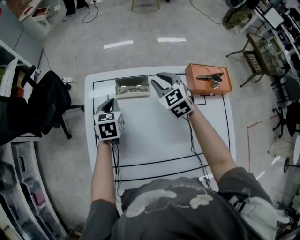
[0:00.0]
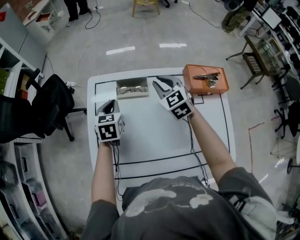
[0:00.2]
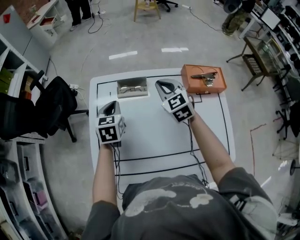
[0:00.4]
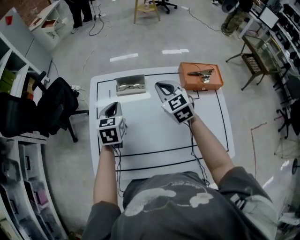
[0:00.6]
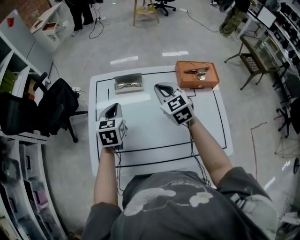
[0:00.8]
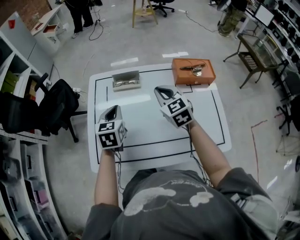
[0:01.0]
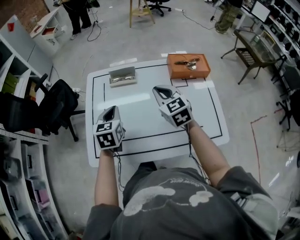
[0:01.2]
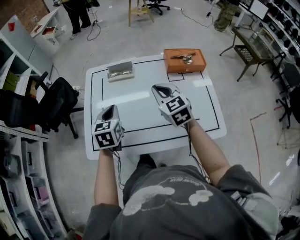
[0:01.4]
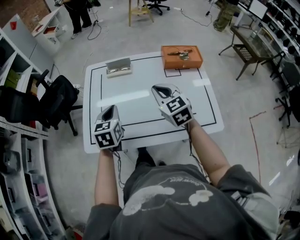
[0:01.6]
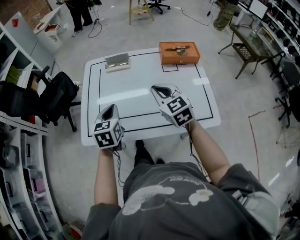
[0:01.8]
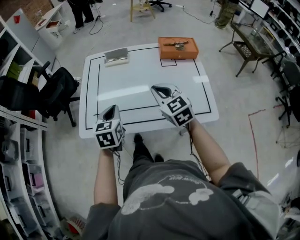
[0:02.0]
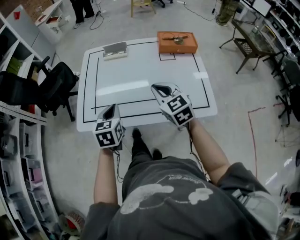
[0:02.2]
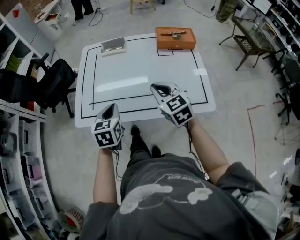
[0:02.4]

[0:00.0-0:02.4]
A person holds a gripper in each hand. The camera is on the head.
0.0 to 1.2 s: The right gripper heads backward, covering about 20 cm, and closes up. The left gripper heads backward and upward, covering approximately 20 cm.
1.2 to 2.4 s: The grippers both shift backward by about 20 cm.

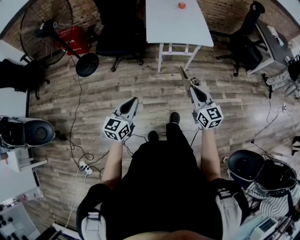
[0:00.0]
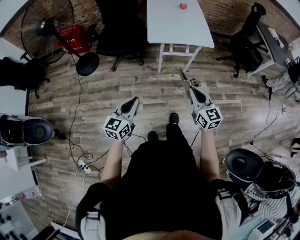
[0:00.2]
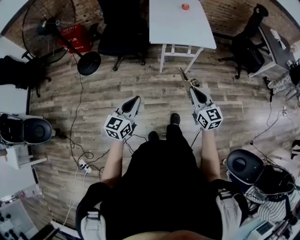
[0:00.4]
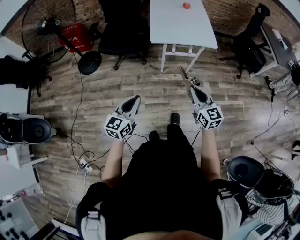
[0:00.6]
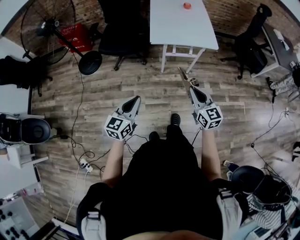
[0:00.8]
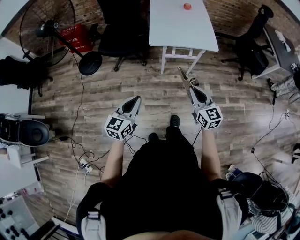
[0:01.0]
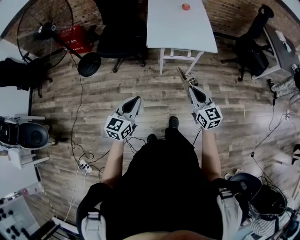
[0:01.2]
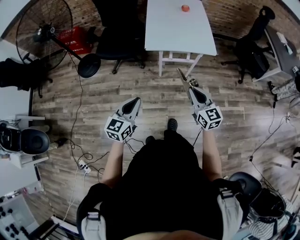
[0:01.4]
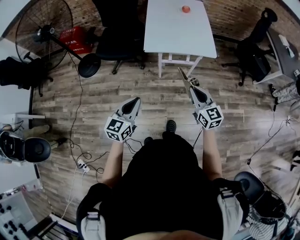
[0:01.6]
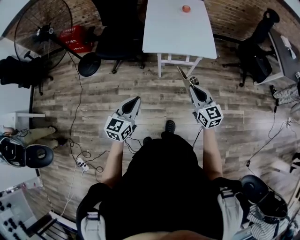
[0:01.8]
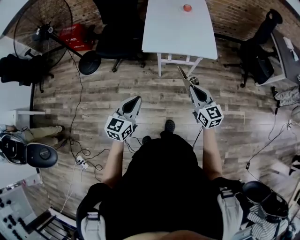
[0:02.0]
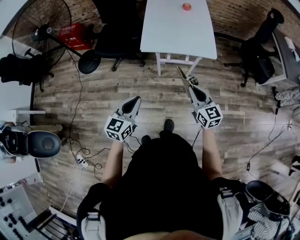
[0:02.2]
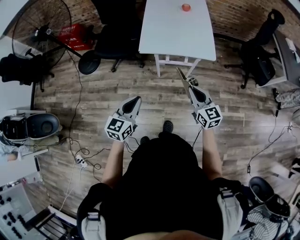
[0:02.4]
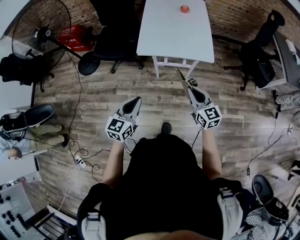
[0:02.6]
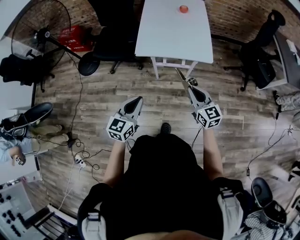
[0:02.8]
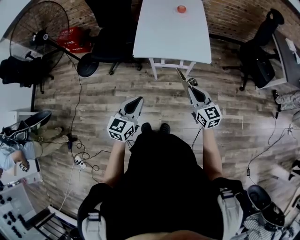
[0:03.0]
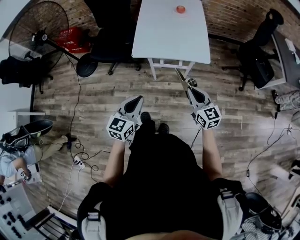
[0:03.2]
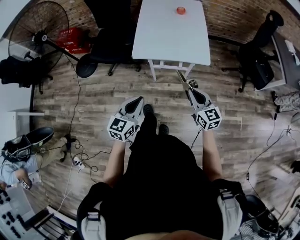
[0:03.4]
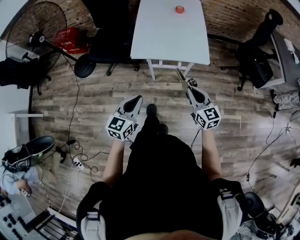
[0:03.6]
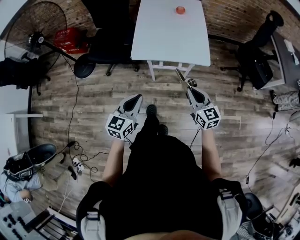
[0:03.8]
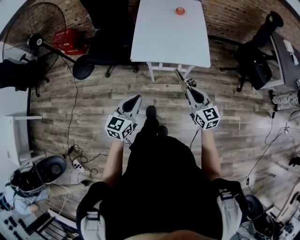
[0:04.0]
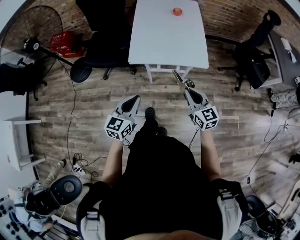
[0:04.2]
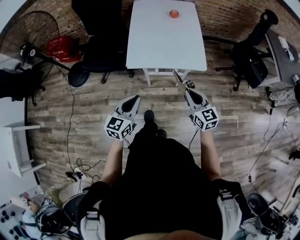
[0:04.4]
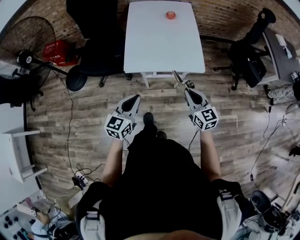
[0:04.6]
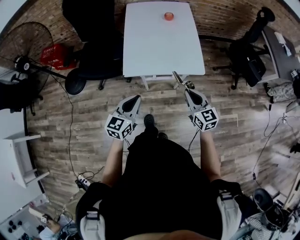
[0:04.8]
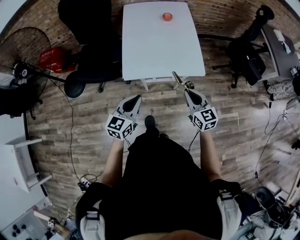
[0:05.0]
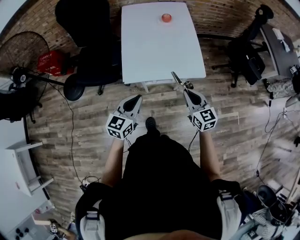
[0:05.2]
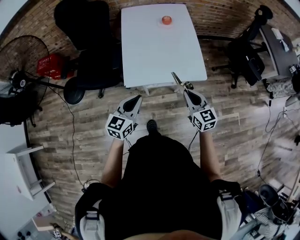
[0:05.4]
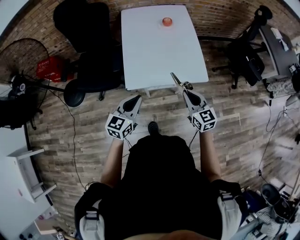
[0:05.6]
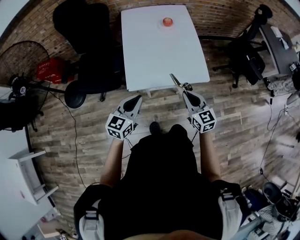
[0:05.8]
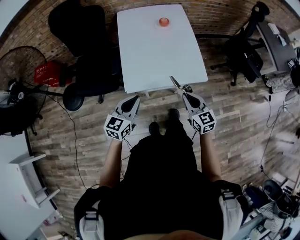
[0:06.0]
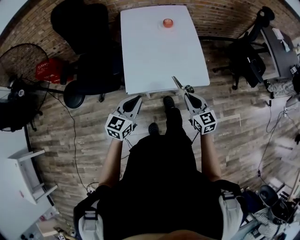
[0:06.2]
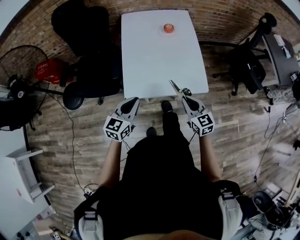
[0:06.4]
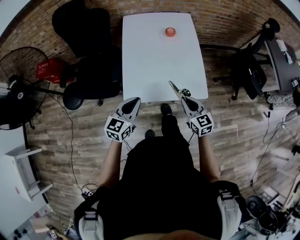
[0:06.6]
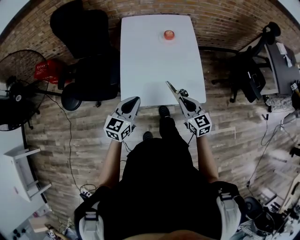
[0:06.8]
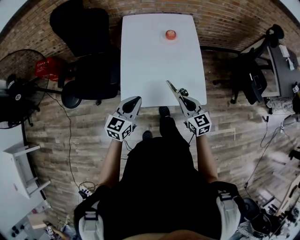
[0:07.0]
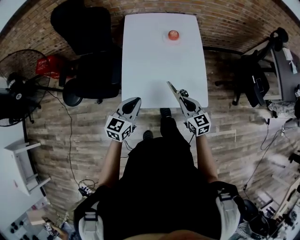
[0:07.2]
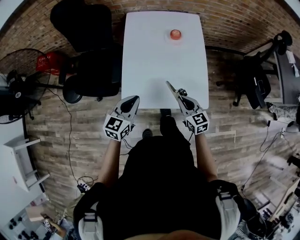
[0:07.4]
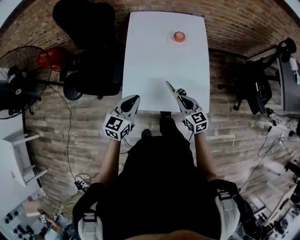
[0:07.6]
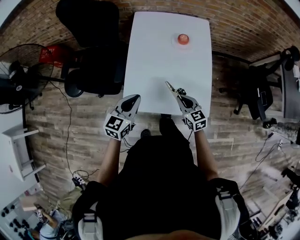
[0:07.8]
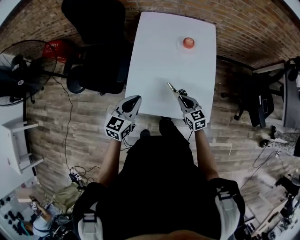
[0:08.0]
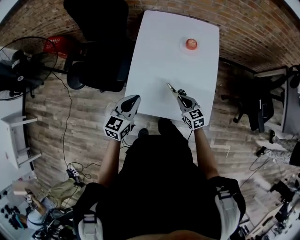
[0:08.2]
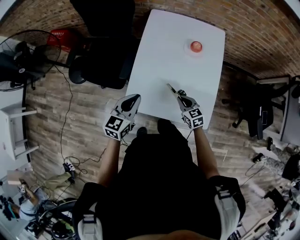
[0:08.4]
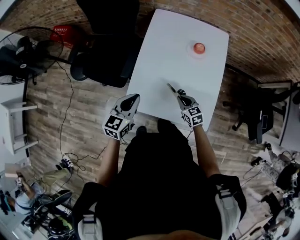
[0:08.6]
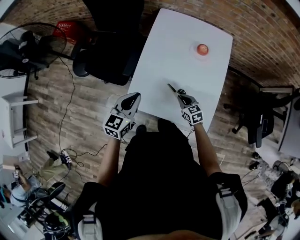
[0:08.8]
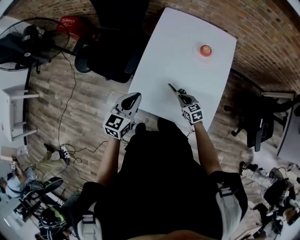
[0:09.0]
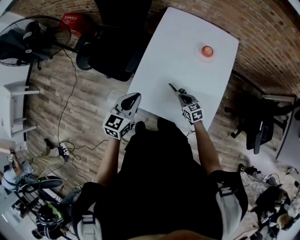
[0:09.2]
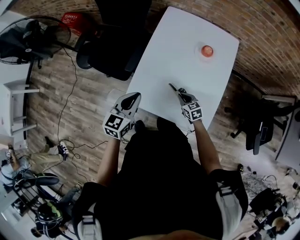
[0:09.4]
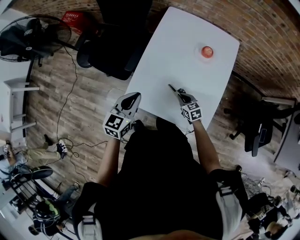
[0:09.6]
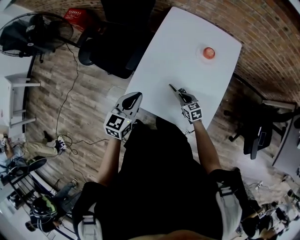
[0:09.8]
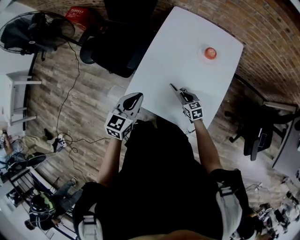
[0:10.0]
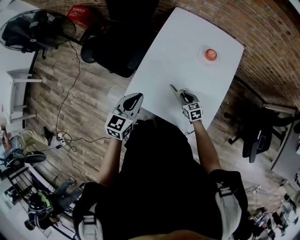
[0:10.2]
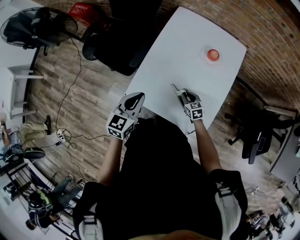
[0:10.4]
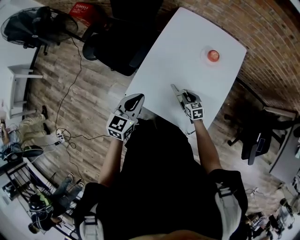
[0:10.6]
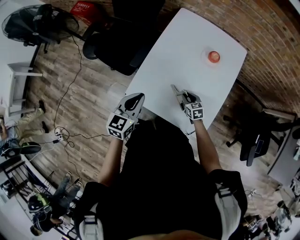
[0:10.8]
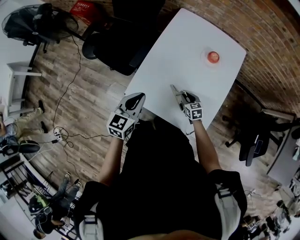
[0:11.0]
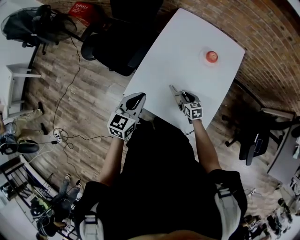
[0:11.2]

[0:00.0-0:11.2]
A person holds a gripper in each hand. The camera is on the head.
0.0 to 1.6 s: The two grippers go some 15 cm forward and to the right.
1.6 to 3.2 s: Both grippers travel together to the right and forward, some 15 cm.
3.2 to 4.8 s: Both grippers move forward, some 15 cm.
4.8 to 6.4 s: The left gripper goes approximately 15 cm forward. Meanwhile the right gripper moves forward and to the left, about 15 cm.
6.4 to 8.0 s: The right gripper goes some 20 cm forward and downward, while the left gripper travels forward by some 15 cm.
8.0 to 9.6 s: The right gripper travels downward and forward by some 10 cm, and swivels some 20 degrees.
9.6 to 11.2 s: The right gripper opens.

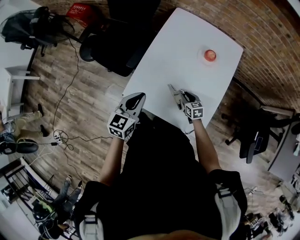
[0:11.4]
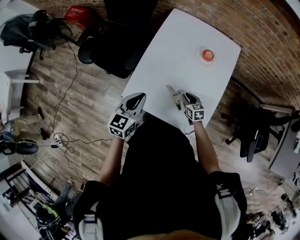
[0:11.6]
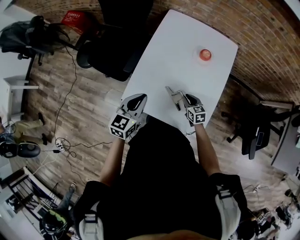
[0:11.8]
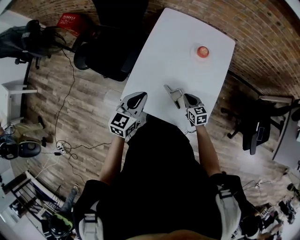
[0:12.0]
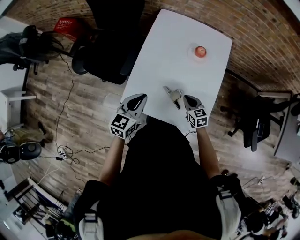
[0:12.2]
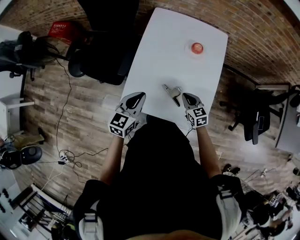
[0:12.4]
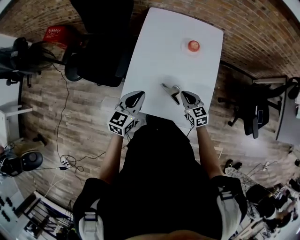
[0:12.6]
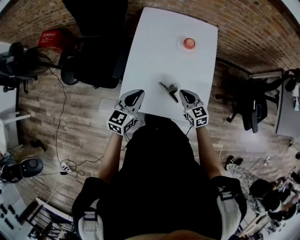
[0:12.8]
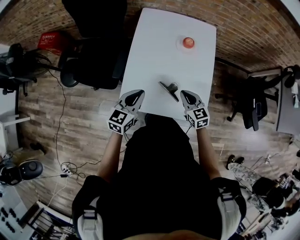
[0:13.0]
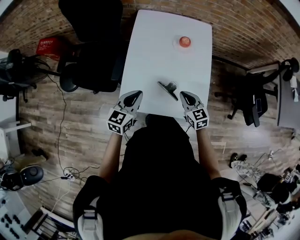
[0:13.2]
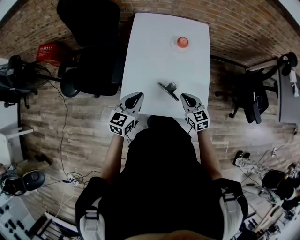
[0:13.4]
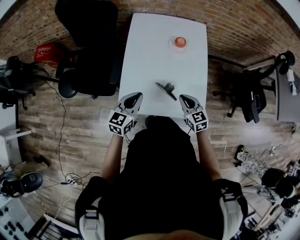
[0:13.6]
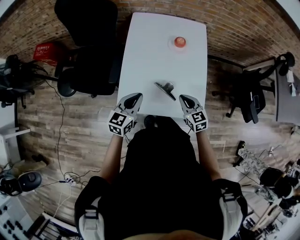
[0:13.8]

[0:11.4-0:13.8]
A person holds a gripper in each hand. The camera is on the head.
11.4 to 12.6 s: The right gripper heads upward, covering roughly 15 cm, and closes up.
12.6 to 13.8 s: The right gripper is displaced backward by approximately 5 cm.

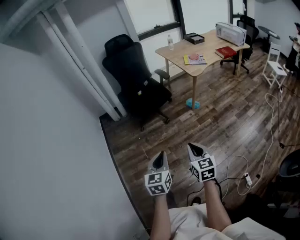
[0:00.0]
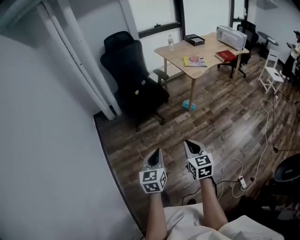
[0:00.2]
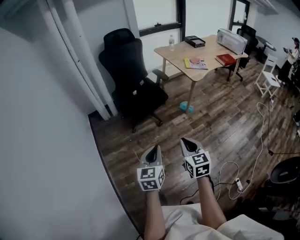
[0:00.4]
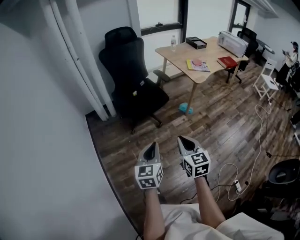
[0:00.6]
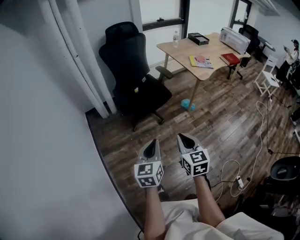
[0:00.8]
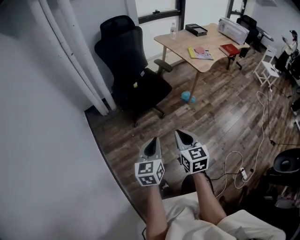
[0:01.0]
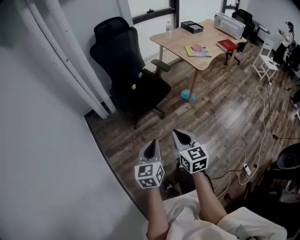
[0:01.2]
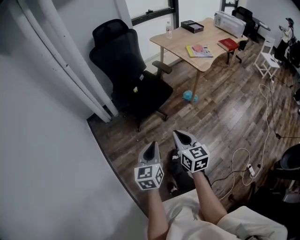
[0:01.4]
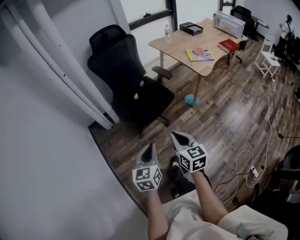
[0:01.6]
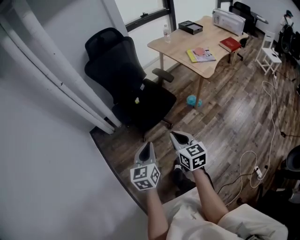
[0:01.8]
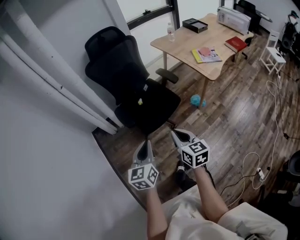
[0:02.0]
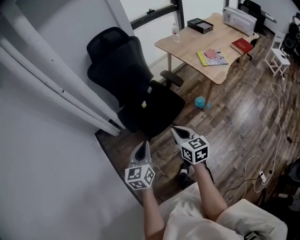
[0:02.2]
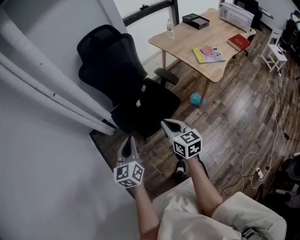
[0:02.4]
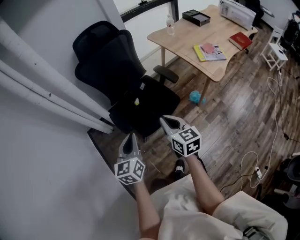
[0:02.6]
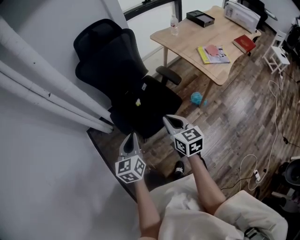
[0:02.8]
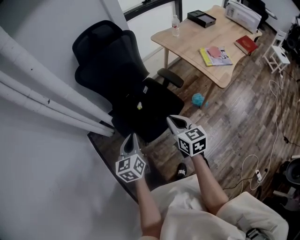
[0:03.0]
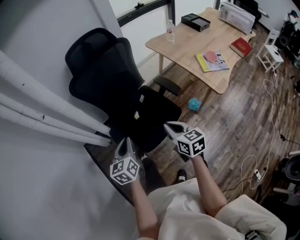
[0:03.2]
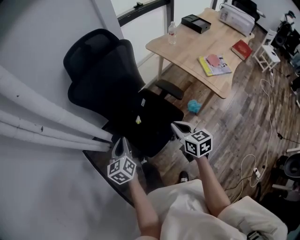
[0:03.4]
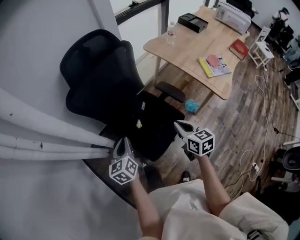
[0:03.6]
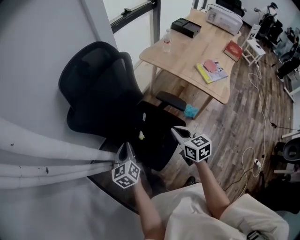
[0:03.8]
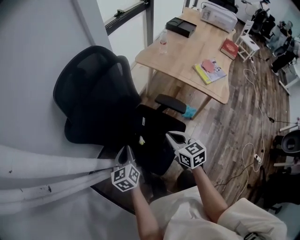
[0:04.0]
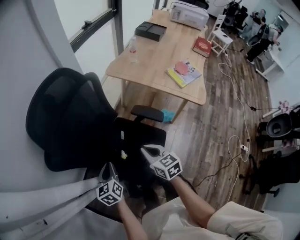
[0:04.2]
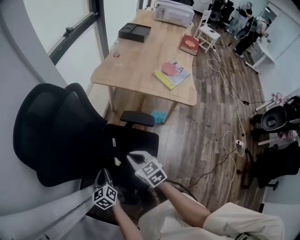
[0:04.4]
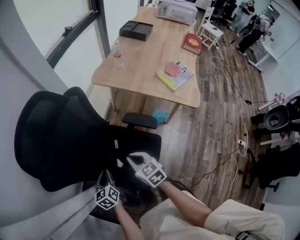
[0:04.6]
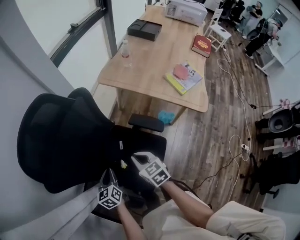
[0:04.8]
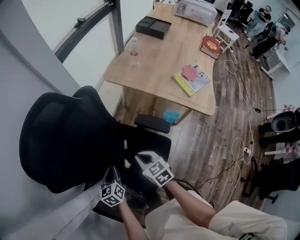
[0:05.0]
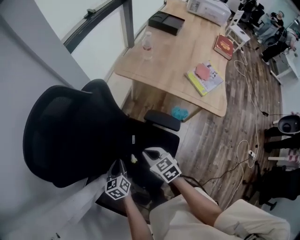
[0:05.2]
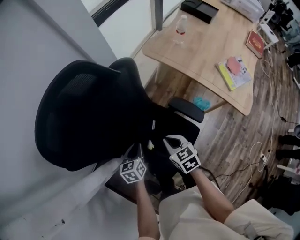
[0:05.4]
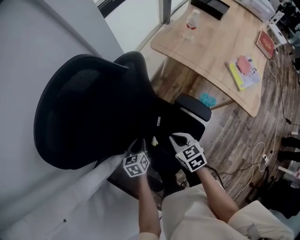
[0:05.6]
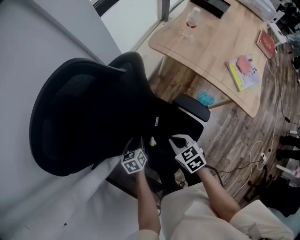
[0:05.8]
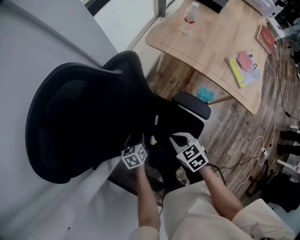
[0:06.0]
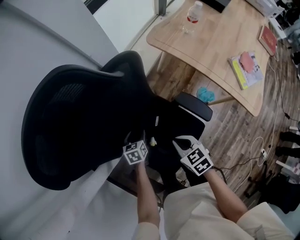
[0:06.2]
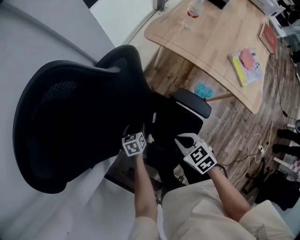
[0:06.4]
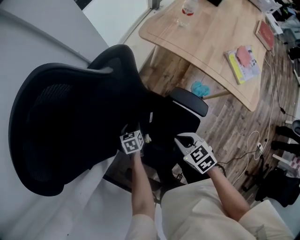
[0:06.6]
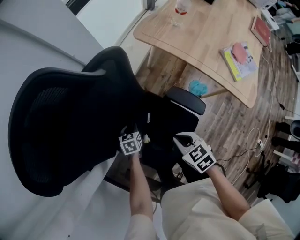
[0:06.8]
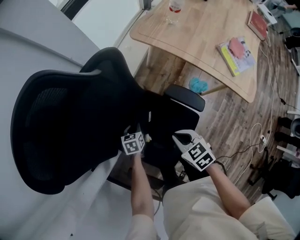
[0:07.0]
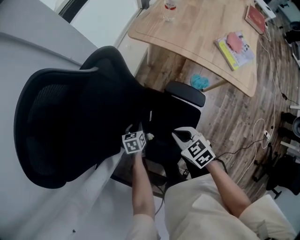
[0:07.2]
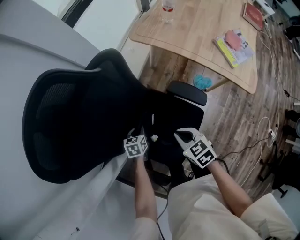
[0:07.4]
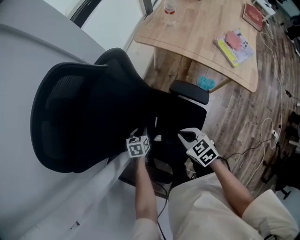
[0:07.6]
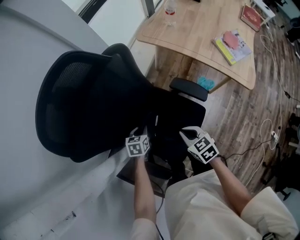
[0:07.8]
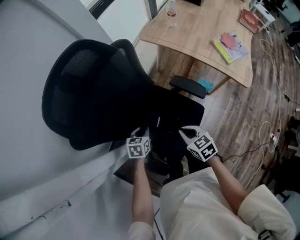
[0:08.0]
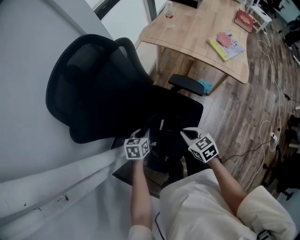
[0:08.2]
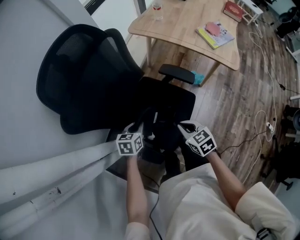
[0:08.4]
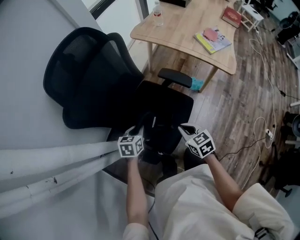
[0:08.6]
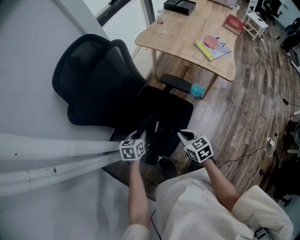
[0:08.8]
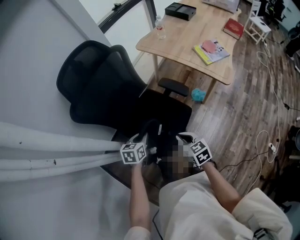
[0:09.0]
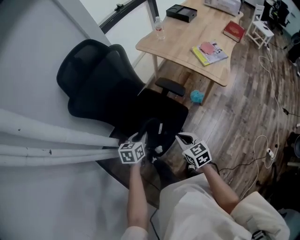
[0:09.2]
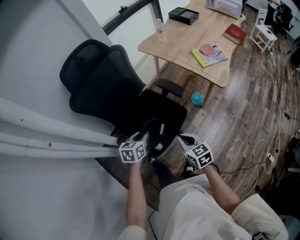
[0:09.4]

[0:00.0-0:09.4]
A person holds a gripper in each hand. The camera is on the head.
0.0 to 1.6 s: Both grippers travel together forward and to the left, some 40 cm.
1.6 to 3.2 s: The pair of grippers is taken forward, about 40 cm.
3.2 to 4.8 s: The right gripper shifts roughly 30 cm forward, and swivels roughly 20 degrees. The left gripper shifts some 35 cm forward and downward, and rotates approximately 20 degrees.
4.8 to 6.2 s: The left gripper heads downward and forward, covering roughly 20 cm, and opens up; the right gripper goes some 10 cm downward, and swivels approximately 20 degrees.
6.2 to 7.8 s: The right gripper is displaced backward by about 10 cm; the left gripper moves backward and upward, approximately 10 cm, and closes its fingers.
7.8 to 9.4 s: The right gripper shifts about 30 cm backward and to the right, while the left gripper shifts approximately 35 cm backward, upward and to the right.
